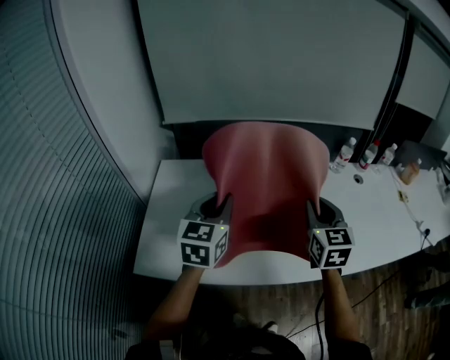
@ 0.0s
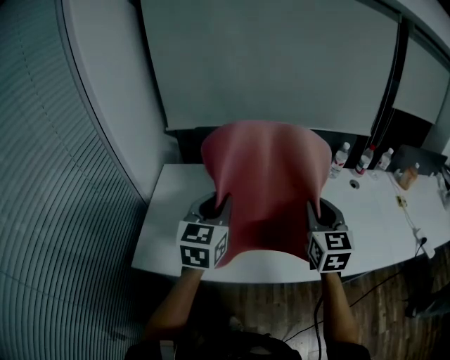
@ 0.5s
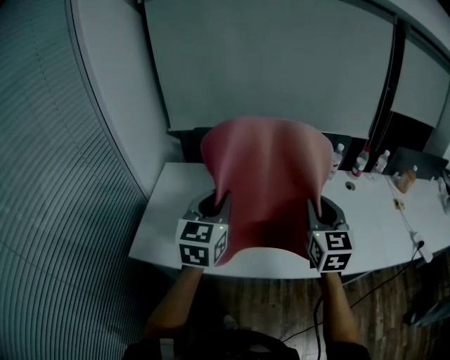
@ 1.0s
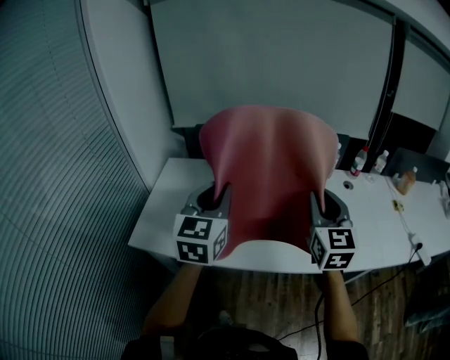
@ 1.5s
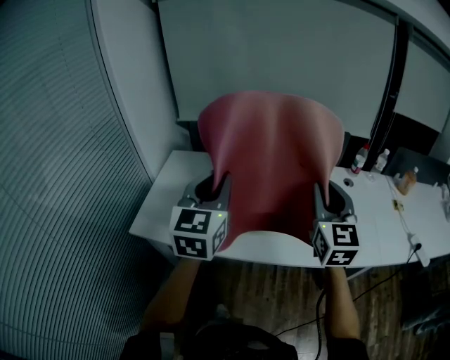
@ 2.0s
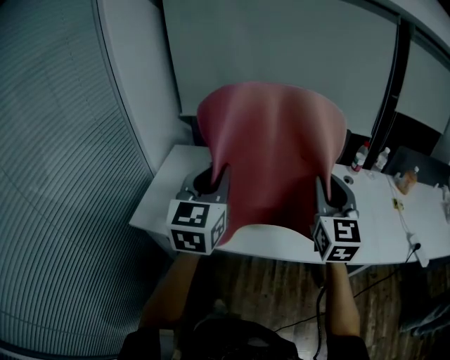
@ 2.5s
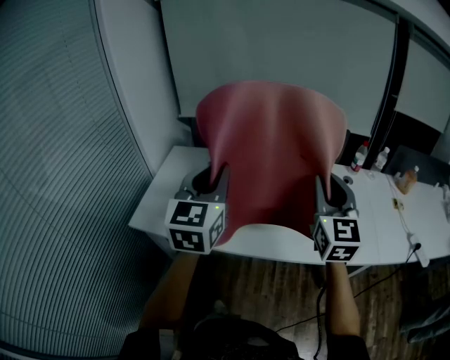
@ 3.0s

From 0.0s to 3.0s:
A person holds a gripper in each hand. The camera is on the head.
From 0.0s to 1.5s: Both grippers move to the right, upward and backward, roughly 20 cm.
From 1.5s to 3.0s: The right gripper shifts by roughly 5 cm, while the left gripper shifts by about 5 cm.

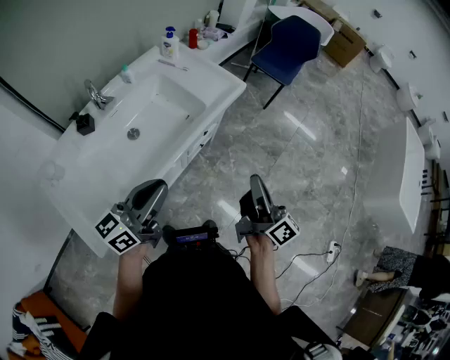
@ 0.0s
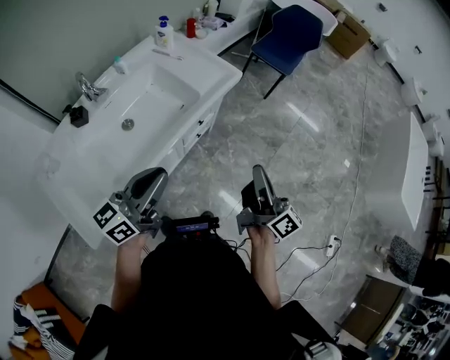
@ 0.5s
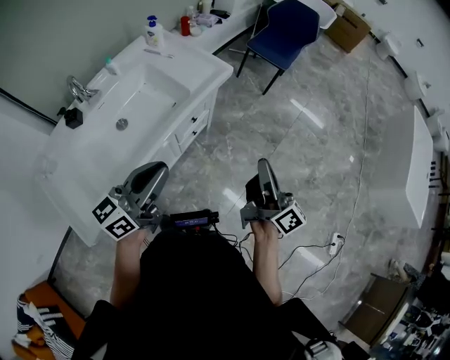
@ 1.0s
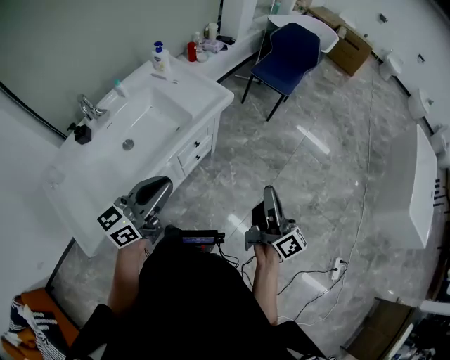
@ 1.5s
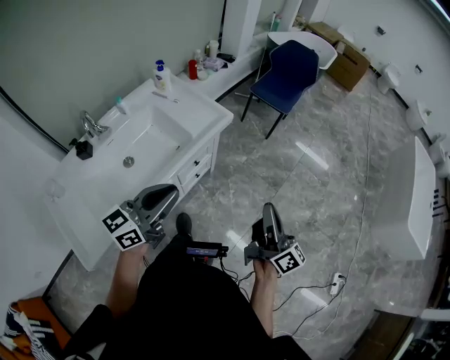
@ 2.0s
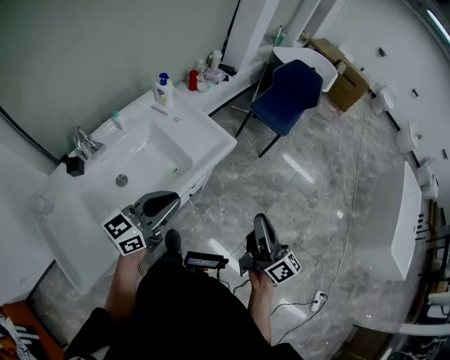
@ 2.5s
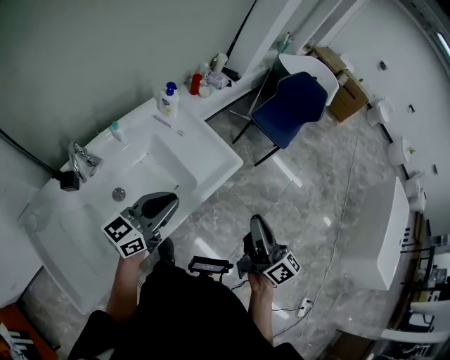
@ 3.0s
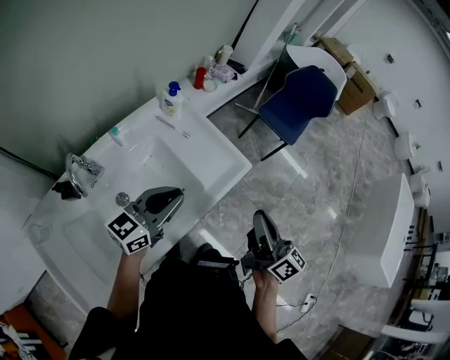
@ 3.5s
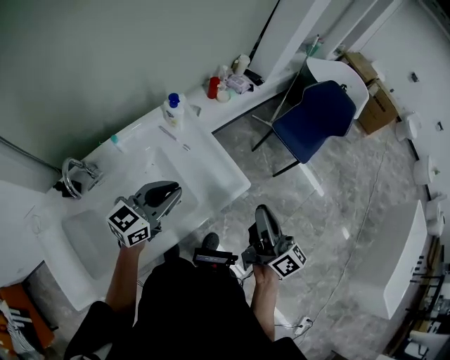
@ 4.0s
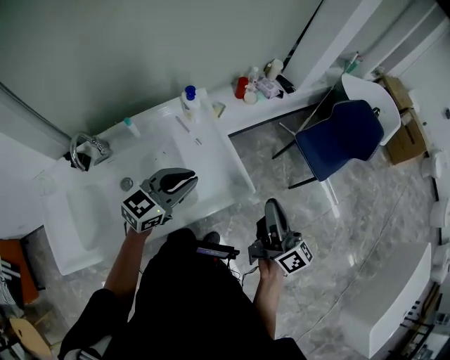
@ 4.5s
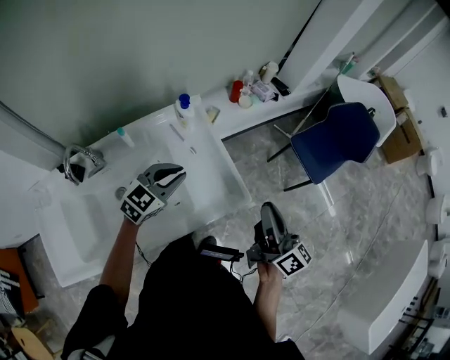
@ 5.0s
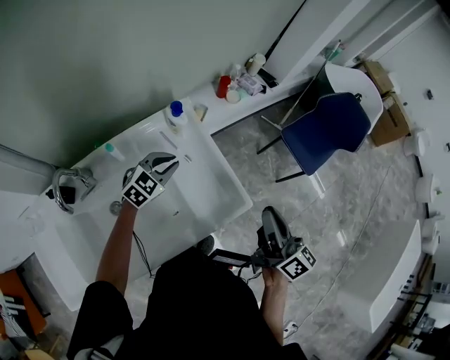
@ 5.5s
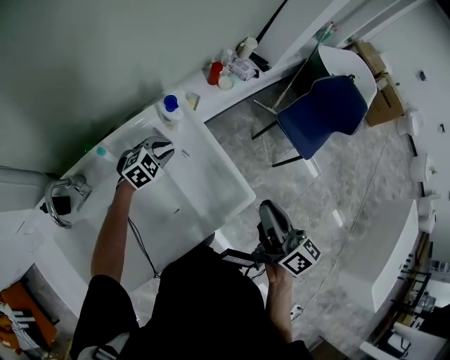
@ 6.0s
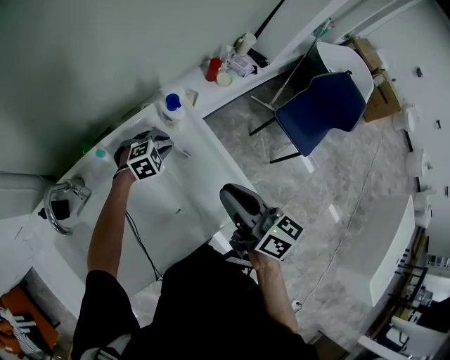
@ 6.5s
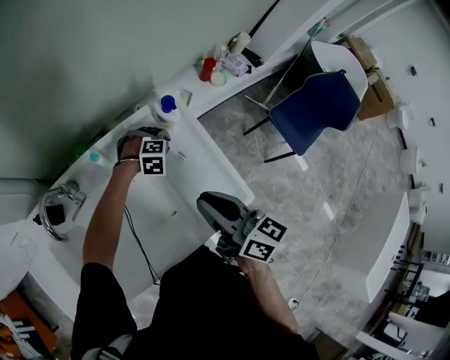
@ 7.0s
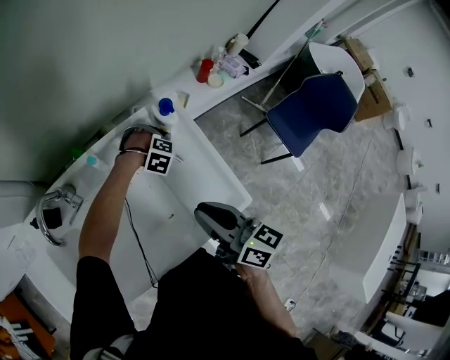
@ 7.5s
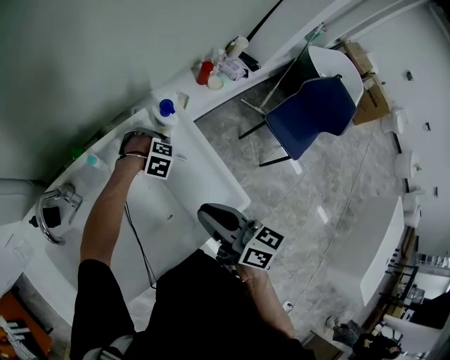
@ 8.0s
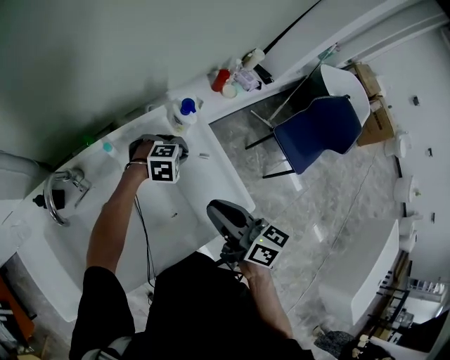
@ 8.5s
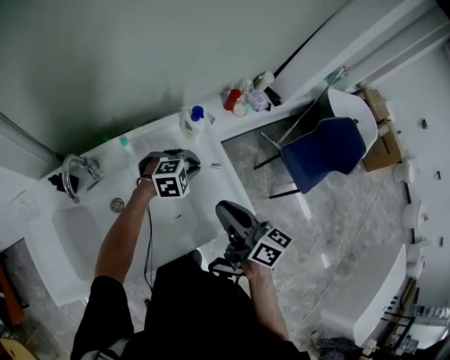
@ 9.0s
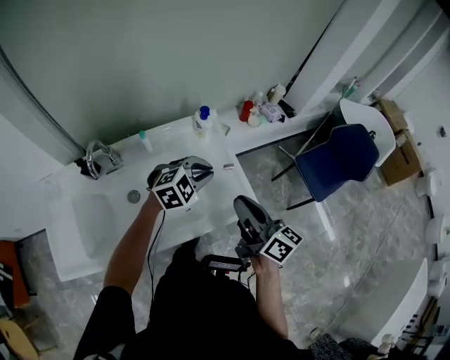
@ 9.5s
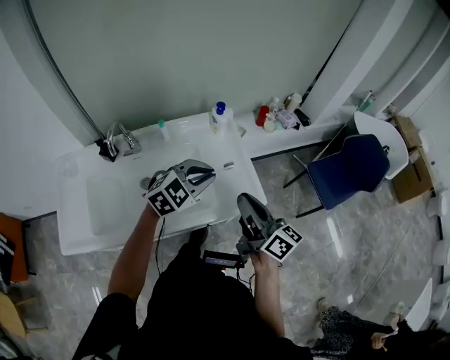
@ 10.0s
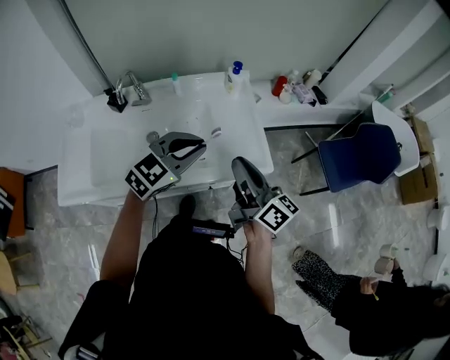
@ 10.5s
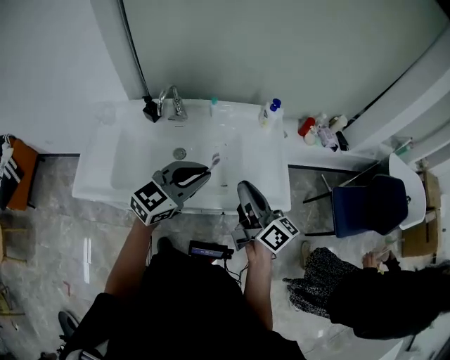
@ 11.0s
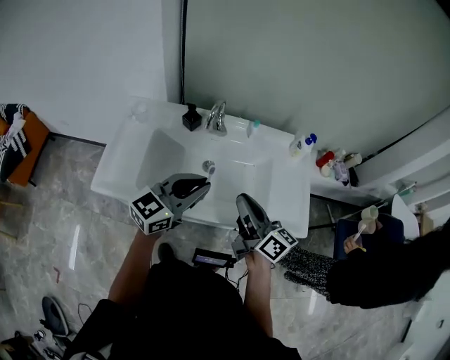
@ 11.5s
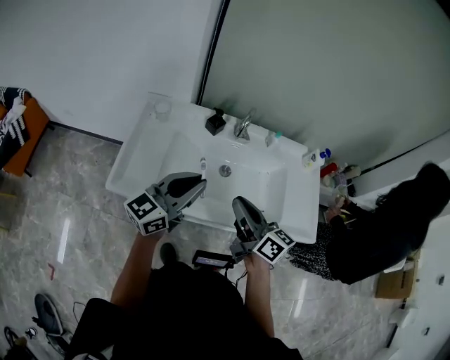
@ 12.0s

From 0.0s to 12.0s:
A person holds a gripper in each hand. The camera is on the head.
From 0.0s to 2.0s: The left gripper is displaced to the right and forward by approximately 15 cm. The right gripper heads to the right, covering approximately 15 cm.
From 2.0s to 4.0s: The left gripper is displaced forward by some 30 cm, while the right gripper moves forward and to the left, some 35 cm.
From 4.0s to 6.0s: The left gripper goes some 30 cm forward and downward, and tips its fingers downward by about 40 degrees; the right gripper goes roughly 10 cm forward.
From 6.0s to 8.0s: The right gripper shifts by roughly 15 cm, and swivels some 20 degrees. Meanwhile the left gripper travels downward by some 10 cm, and tilts its fingers approximately 30 degrees downward.
From 8.0s to 10.0s: The left gripper moves upward, some 30 cm, and angles its fingers upward, by about 50 degrees. Meanwhile the right gripper shifts by about 15 cm.
From 10.0s to 12.0s: The right gripper ends up roughly 35 cm from where it was, and changes its angle by about 30 degrees. The left gripper ends up approximately 40 cm from where it was, and tips its fingers upward by some 40 degrees.

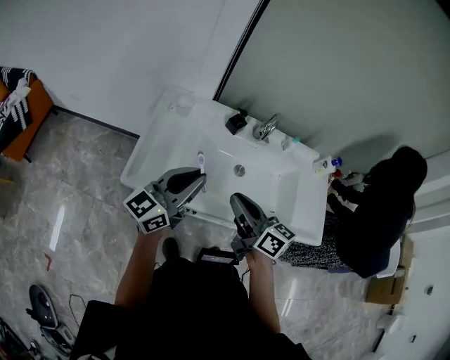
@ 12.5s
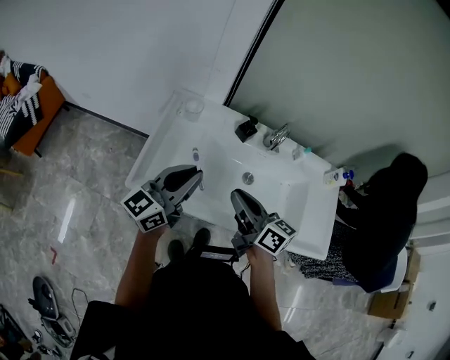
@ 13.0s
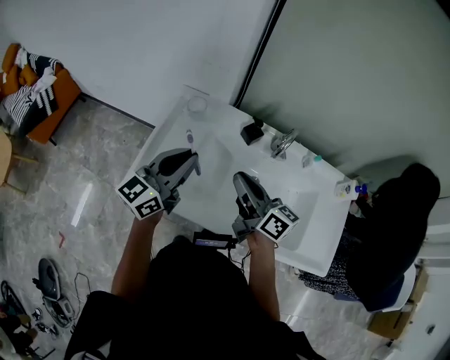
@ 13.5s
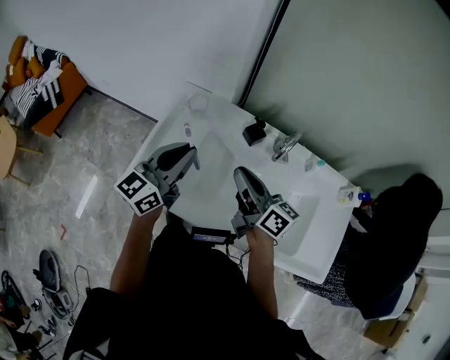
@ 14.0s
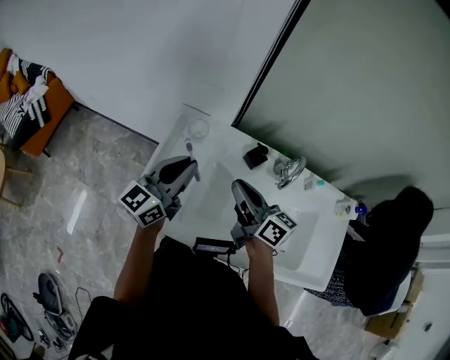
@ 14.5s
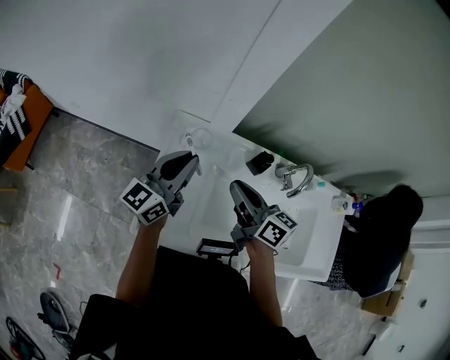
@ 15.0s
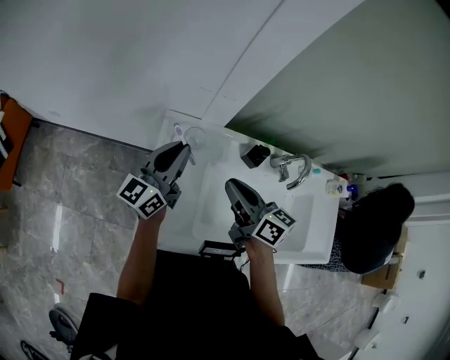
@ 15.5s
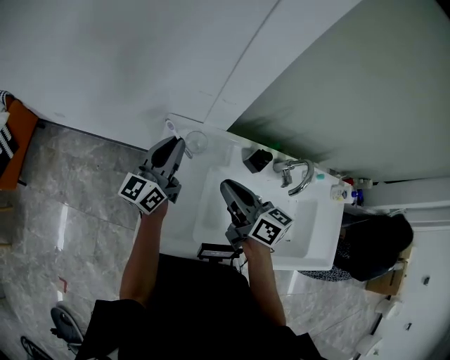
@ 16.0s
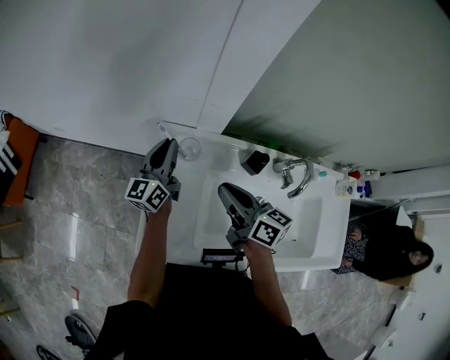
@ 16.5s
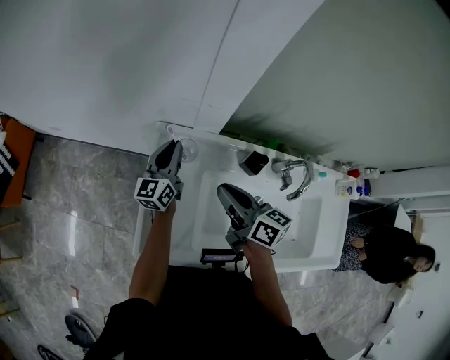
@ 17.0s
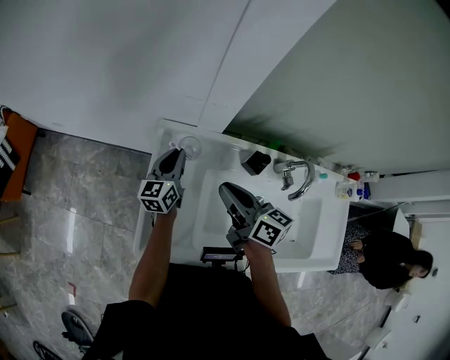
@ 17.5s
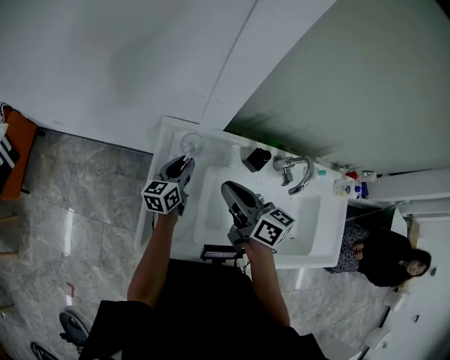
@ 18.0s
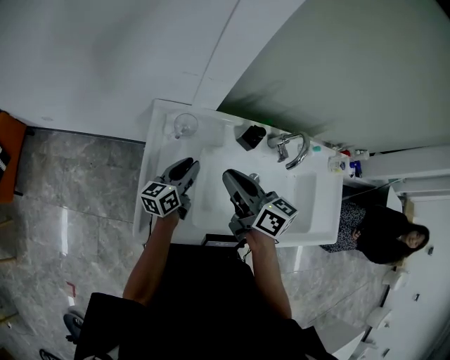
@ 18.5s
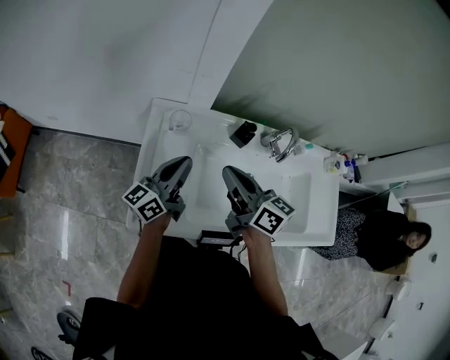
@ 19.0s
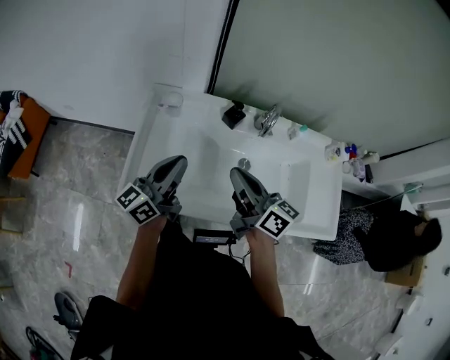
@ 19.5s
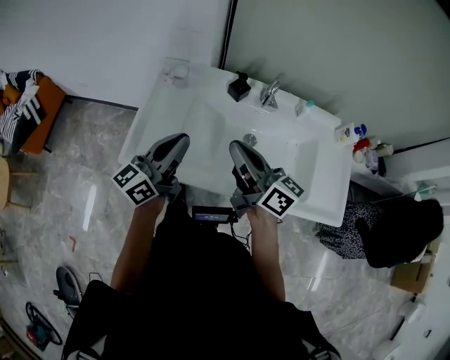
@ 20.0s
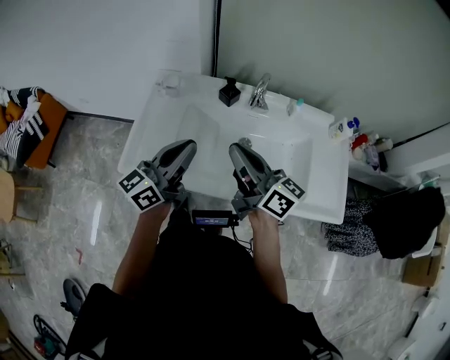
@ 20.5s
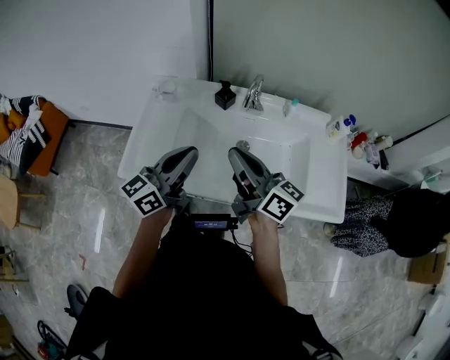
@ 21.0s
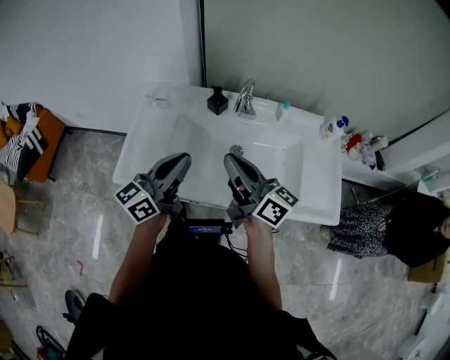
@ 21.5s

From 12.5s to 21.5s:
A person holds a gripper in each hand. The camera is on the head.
From 12.5s to 14.5s: Both grippers travel together forward, approximately 20 cm.
From 14.5s to 17.0s: The right gripper travels forward and to the left by some 10 cm. The left gripper goes approximately 25 cm forward and downward.
From 17.0s to 19.5s: The right gripper goes approximately 20 cm backward and to the right; the left gripper travels backward by approximately 30 cm, and changes its angle by some 30 degrees.
From 19.5s to 21.5s: Both grippers move to the right and backward, roughly 10 cm.

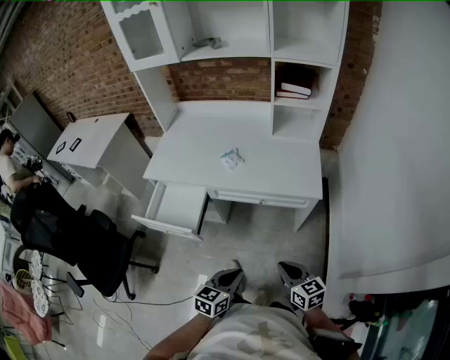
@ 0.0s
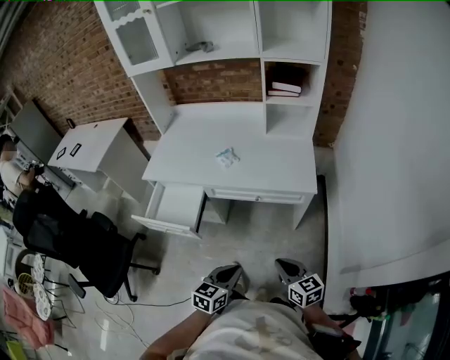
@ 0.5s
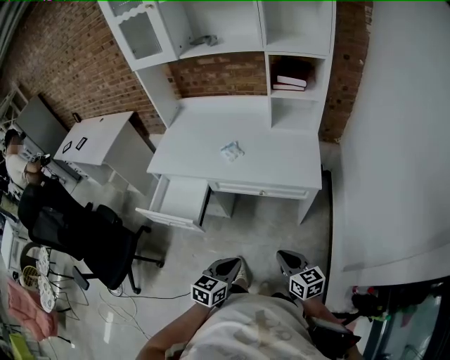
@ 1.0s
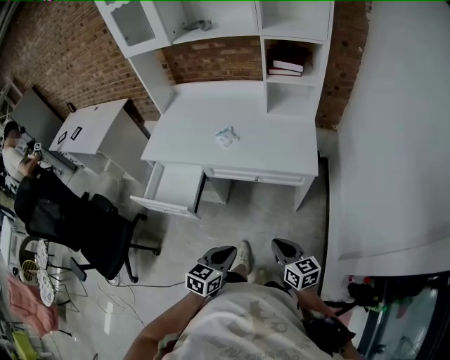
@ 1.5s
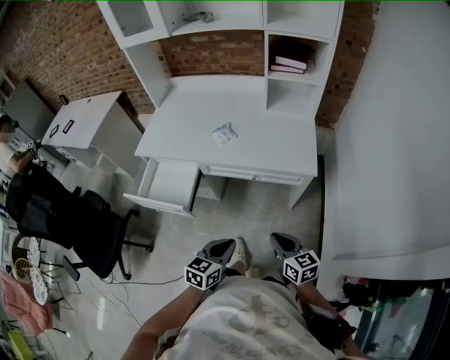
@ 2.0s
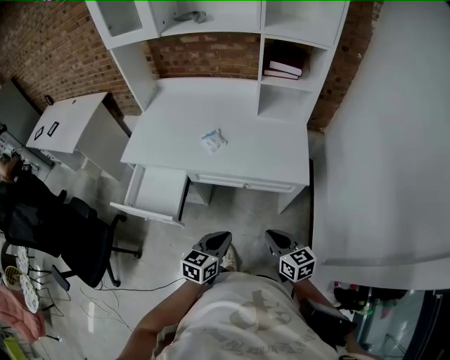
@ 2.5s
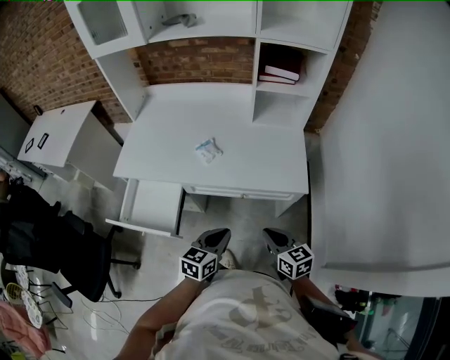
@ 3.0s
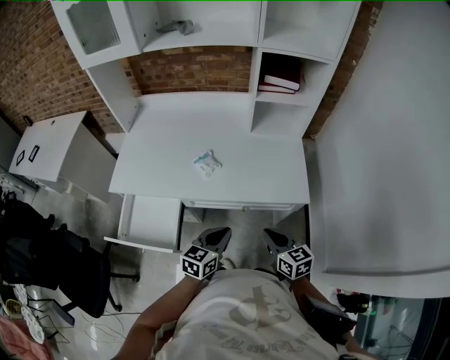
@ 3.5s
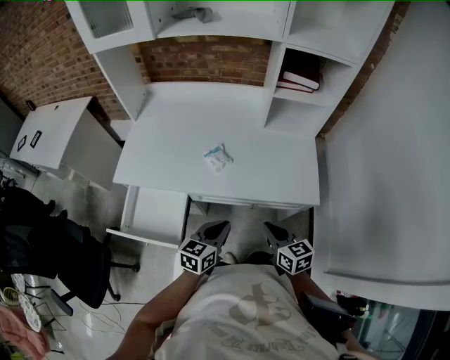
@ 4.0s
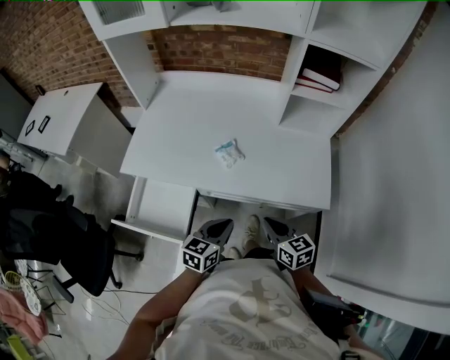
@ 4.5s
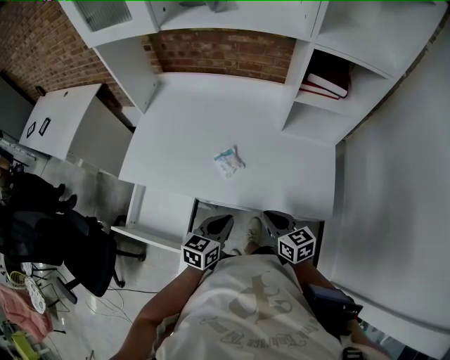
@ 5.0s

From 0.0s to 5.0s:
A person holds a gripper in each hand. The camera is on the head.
From 0.0s to 2.5s: Both grippers travel together forward, some 10 cm.
From 2.5s to 5.0s: Both grippers move forward, about 25 cm.
